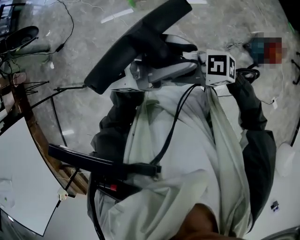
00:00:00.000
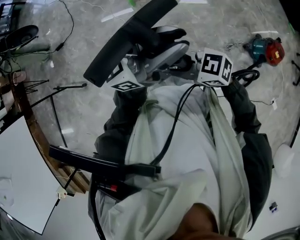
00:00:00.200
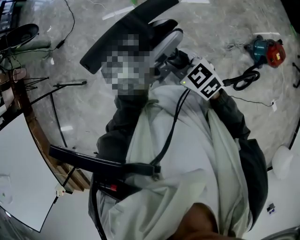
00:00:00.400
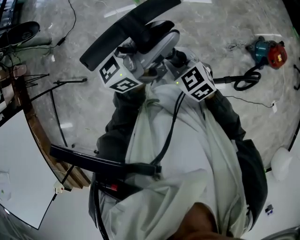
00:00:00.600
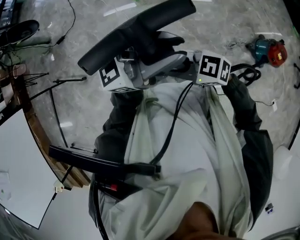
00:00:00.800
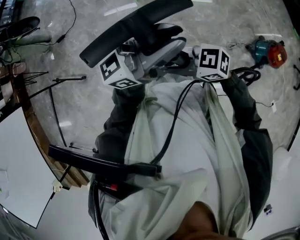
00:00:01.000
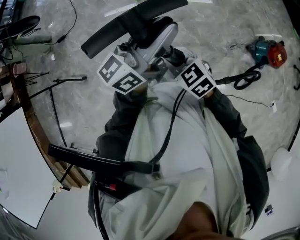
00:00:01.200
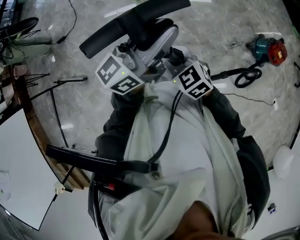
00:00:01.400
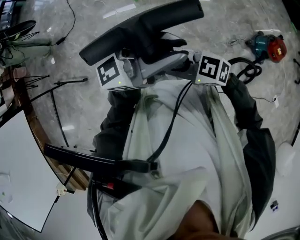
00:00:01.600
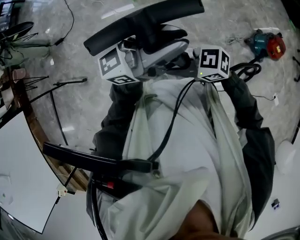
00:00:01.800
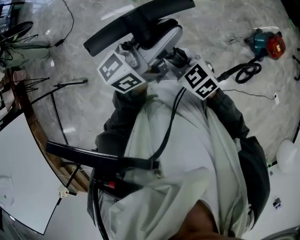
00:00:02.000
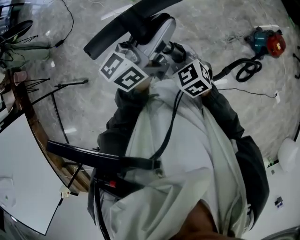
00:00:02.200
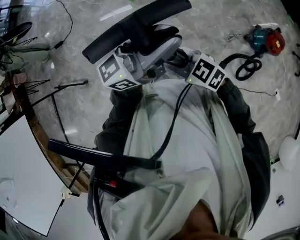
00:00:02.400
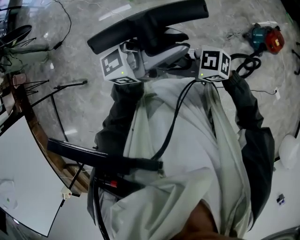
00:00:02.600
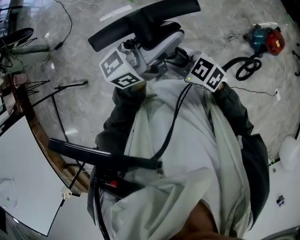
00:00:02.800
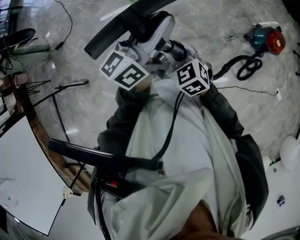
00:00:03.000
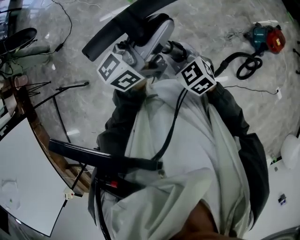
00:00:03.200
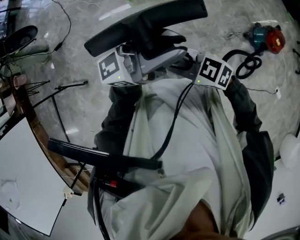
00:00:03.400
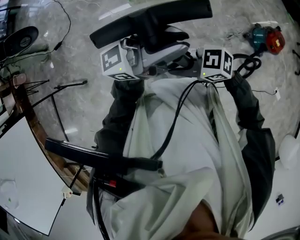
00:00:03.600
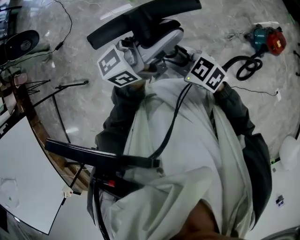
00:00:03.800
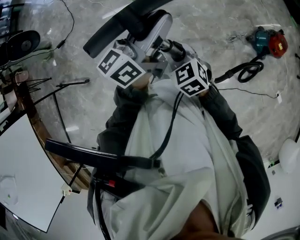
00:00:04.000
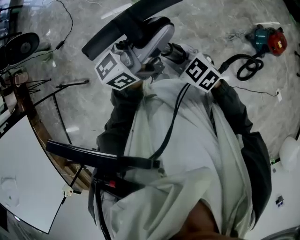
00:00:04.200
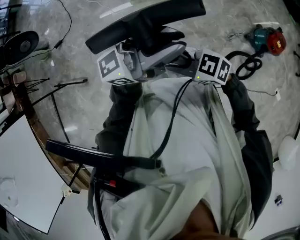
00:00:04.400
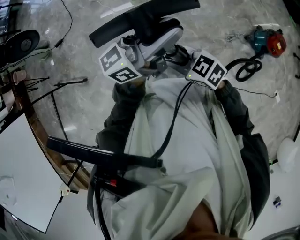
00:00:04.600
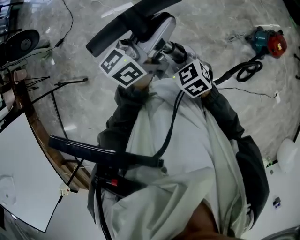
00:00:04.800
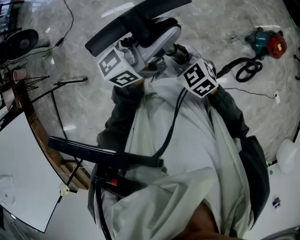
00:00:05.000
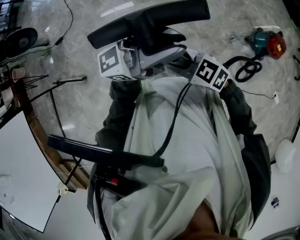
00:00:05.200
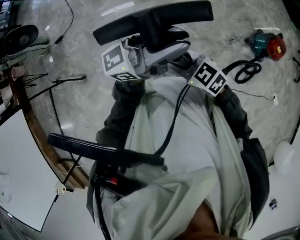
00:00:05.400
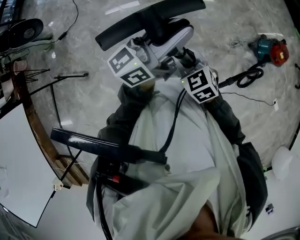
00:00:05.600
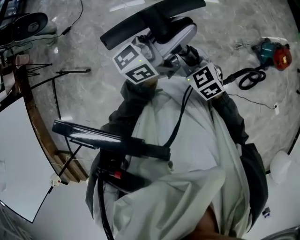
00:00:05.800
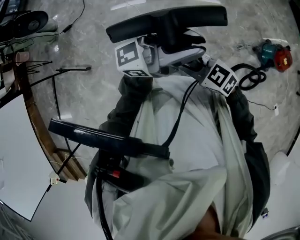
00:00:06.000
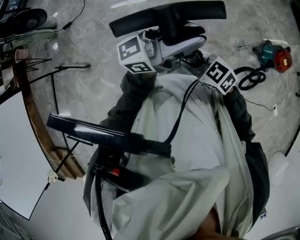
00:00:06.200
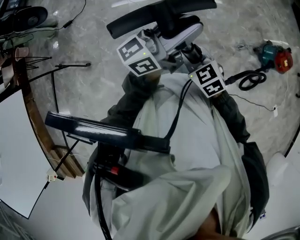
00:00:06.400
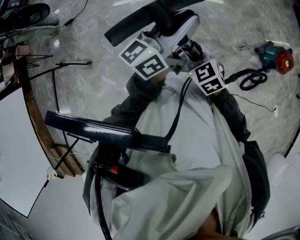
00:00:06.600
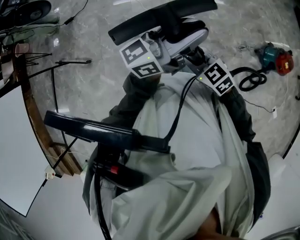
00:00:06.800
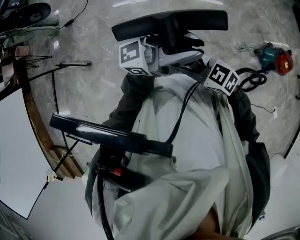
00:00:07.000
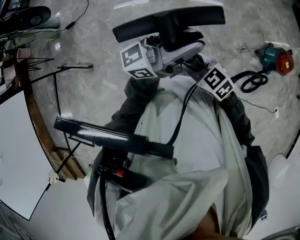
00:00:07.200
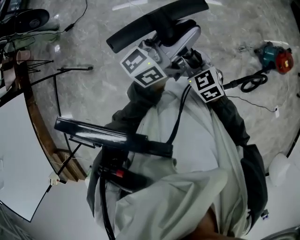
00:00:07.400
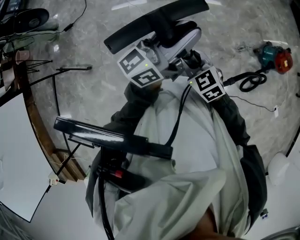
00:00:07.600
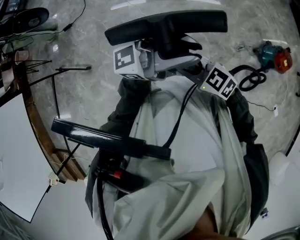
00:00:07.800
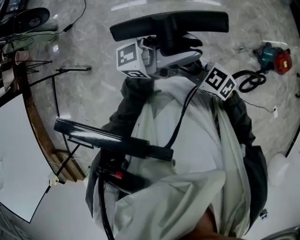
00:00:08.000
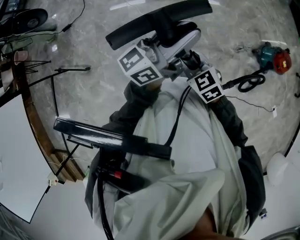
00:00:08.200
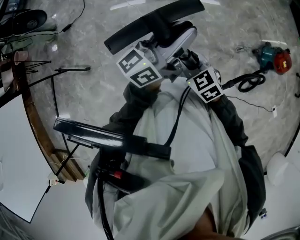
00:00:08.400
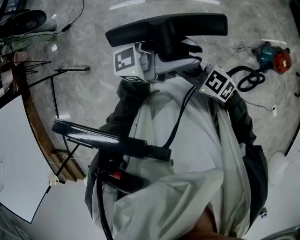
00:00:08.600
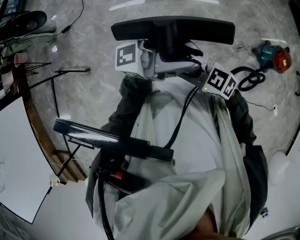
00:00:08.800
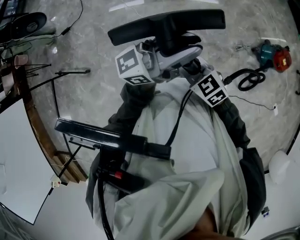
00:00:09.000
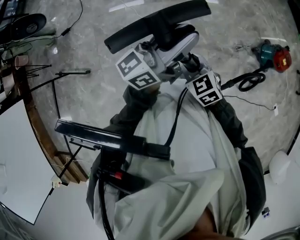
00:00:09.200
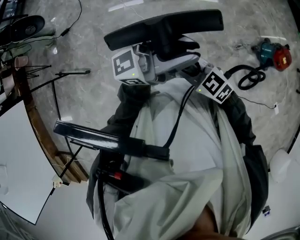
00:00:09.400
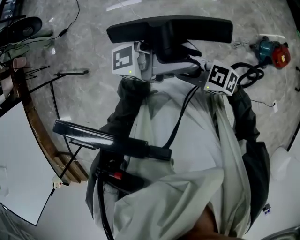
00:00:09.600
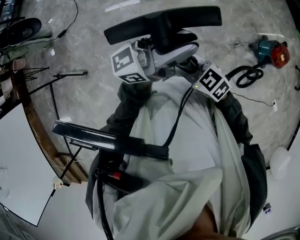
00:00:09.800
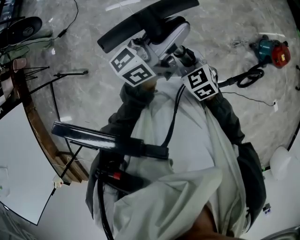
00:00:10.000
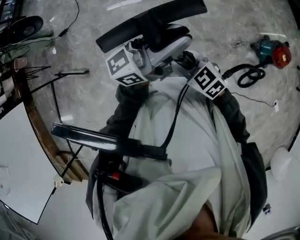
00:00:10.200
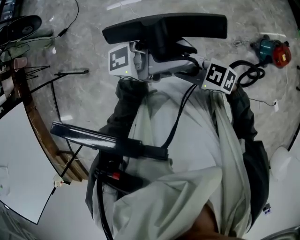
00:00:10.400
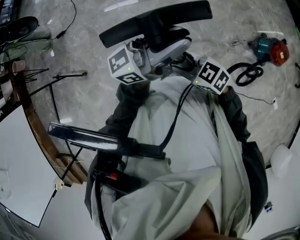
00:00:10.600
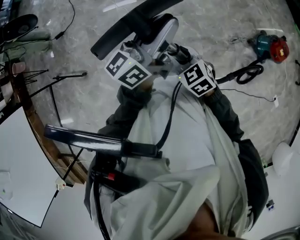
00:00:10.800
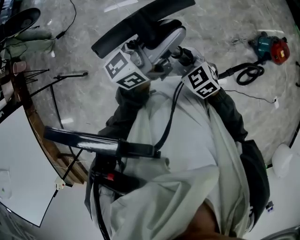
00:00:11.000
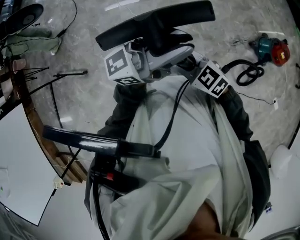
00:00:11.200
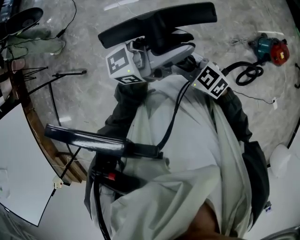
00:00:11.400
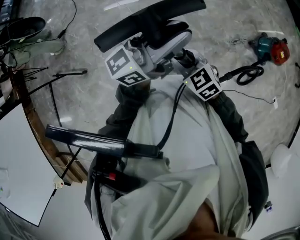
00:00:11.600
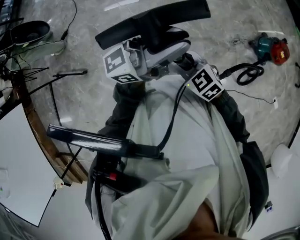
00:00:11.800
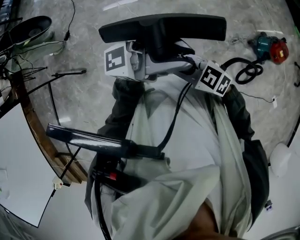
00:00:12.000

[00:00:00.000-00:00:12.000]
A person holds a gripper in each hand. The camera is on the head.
00:00:01.600 to 00:00:03.000: The left gripper shifts by some 10 cm, and swivels some 30 degrees, while the right gripper ends up approximately 10 cm from where it was, and changes its angle by approximately 50 degrees.
00:00:03.000 to 00:00:04.400: The right gripper moves about 5 cm, and rotates roughly 40 degrees. Meanwhile the left gripper goes up and down, some 5 cm each way, reversing 2 times, and changes its angle by about 30 degrees.
00:00:04.400 to 00:00:06.000: The left gripper moves up and down over about 5 cm, changing direction 2 times.
00:00:06.000 to 00:00:07.600: The right gripper changes its angle by about 20 degrees; the left gripper ends up some 5 cm from where it was, and turns by about 30 degrees.
00:00:09.000 to 00:00:10.400: The right gripper changes its angle by about 30 degrees.

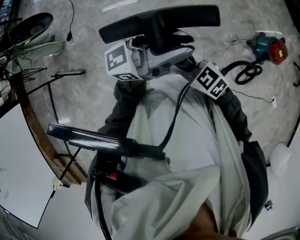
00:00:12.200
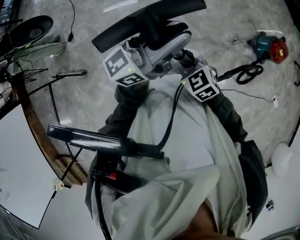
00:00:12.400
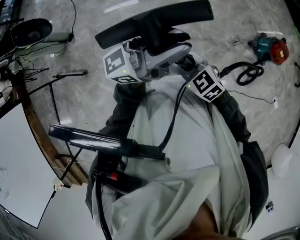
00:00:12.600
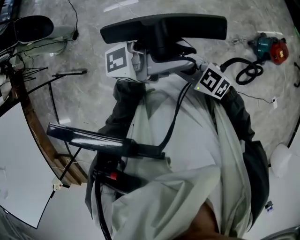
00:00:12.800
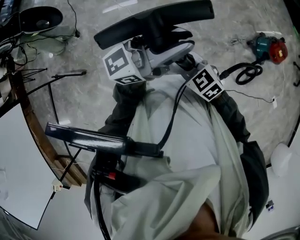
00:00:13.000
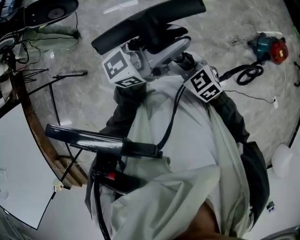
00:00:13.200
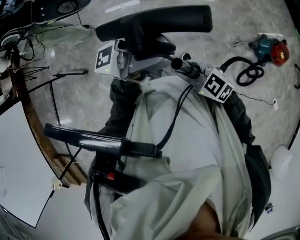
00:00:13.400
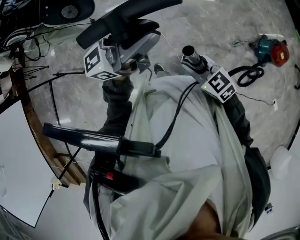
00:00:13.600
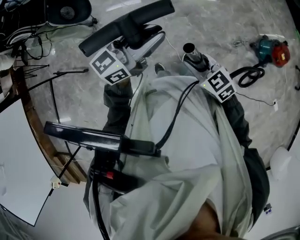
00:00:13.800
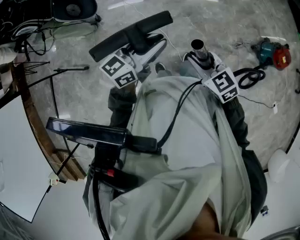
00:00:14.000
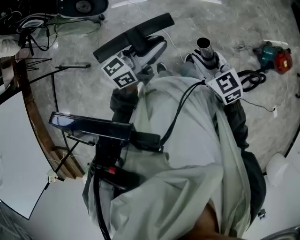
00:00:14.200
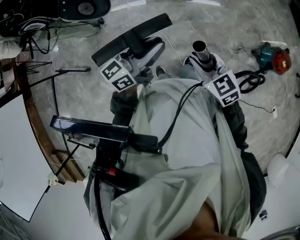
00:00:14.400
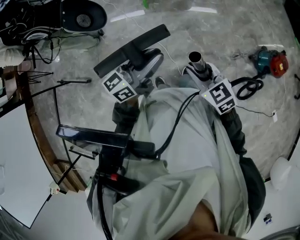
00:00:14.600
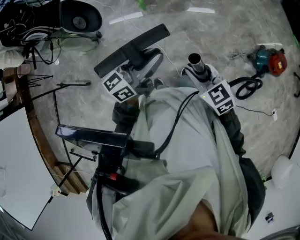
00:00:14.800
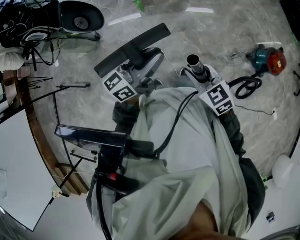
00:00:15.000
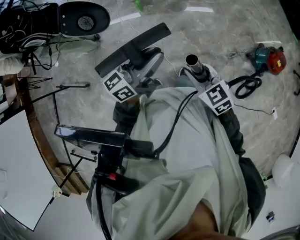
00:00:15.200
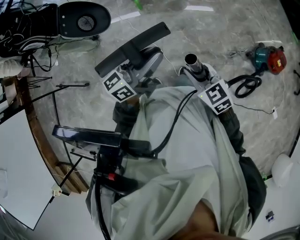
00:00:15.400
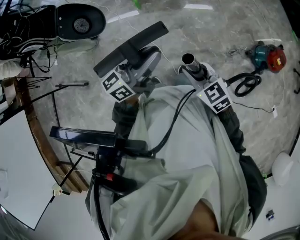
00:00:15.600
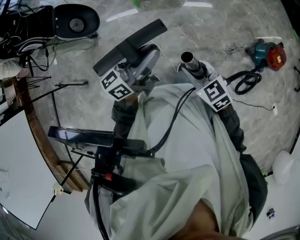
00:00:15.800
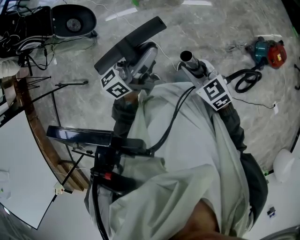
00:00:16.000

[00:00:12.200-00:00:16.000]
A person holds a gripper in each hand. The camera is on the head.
00:00:12.200 to 00:00:13.400: The left gripper moves about 10 cm.
00:00:13.400 to 00:00:14.800: The left gripper is displaced downward by approximately 15 cm, and points its fingers some 40 degrees further downward. The right gripper ends up approximately 10 cm from where it was, and swivels some 20 degrees.
00:00:14.800 to 00:00:16.000: The grippers stay close to where they were, moving slightly.

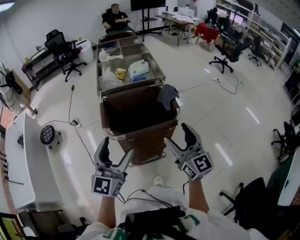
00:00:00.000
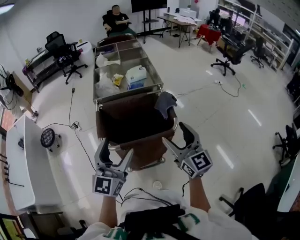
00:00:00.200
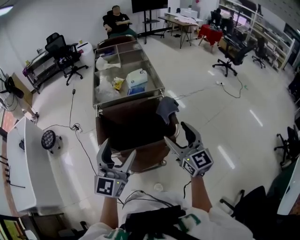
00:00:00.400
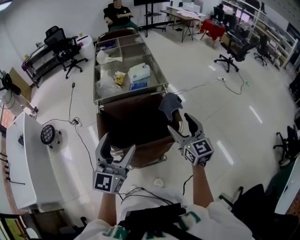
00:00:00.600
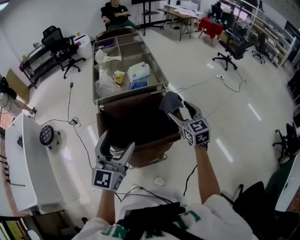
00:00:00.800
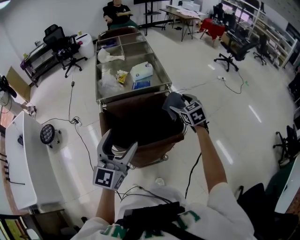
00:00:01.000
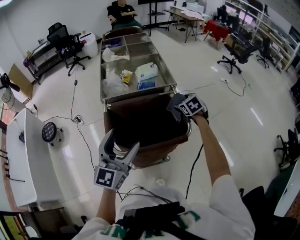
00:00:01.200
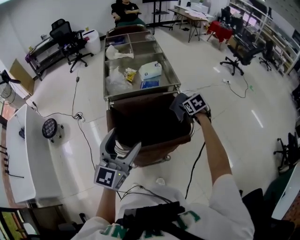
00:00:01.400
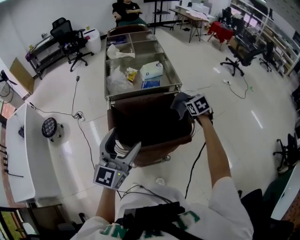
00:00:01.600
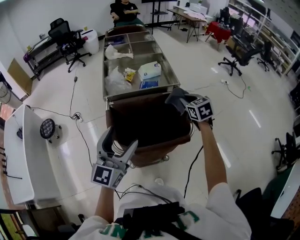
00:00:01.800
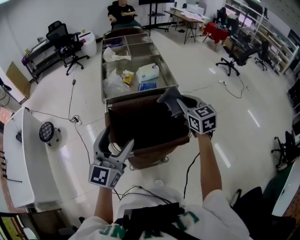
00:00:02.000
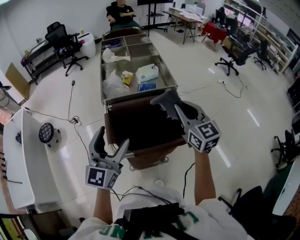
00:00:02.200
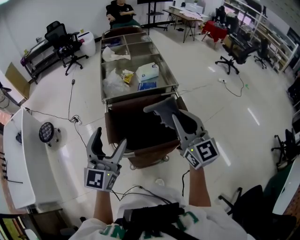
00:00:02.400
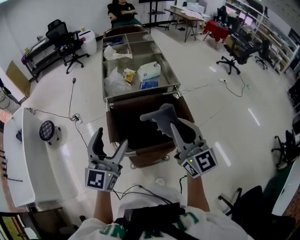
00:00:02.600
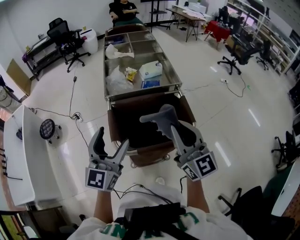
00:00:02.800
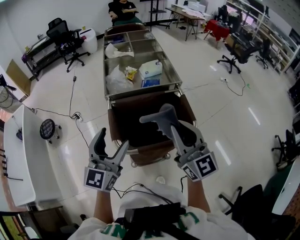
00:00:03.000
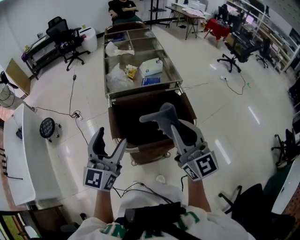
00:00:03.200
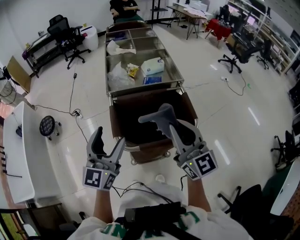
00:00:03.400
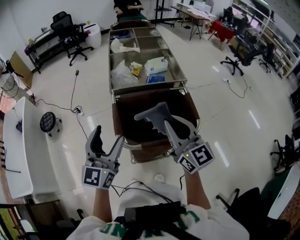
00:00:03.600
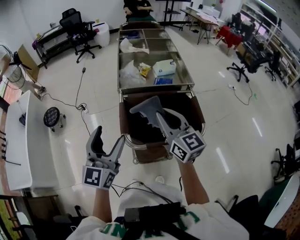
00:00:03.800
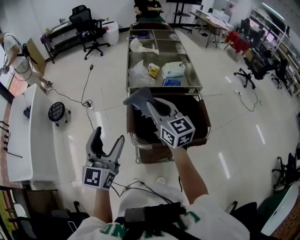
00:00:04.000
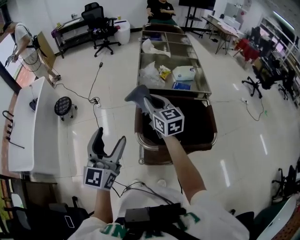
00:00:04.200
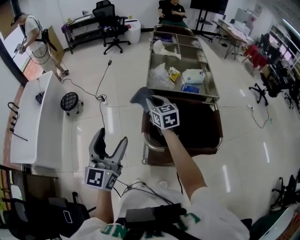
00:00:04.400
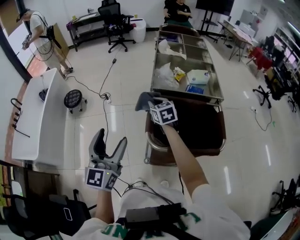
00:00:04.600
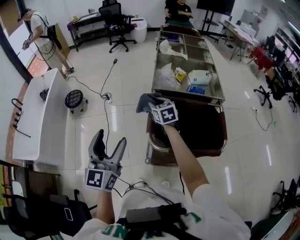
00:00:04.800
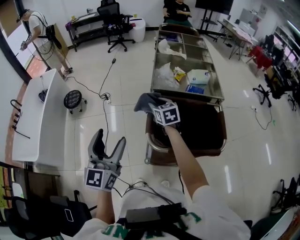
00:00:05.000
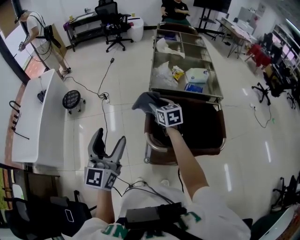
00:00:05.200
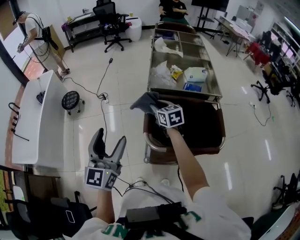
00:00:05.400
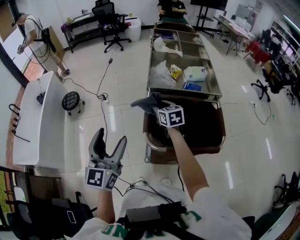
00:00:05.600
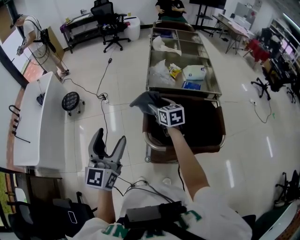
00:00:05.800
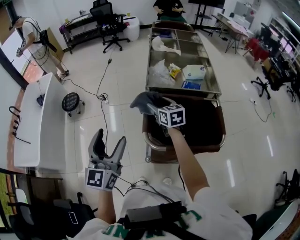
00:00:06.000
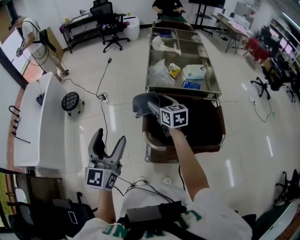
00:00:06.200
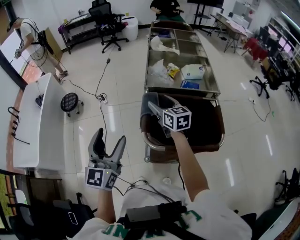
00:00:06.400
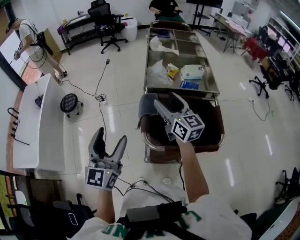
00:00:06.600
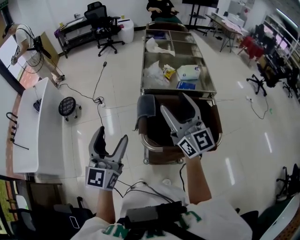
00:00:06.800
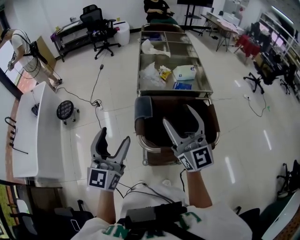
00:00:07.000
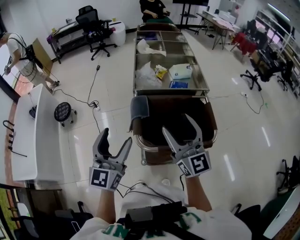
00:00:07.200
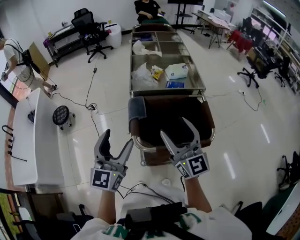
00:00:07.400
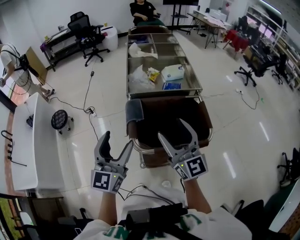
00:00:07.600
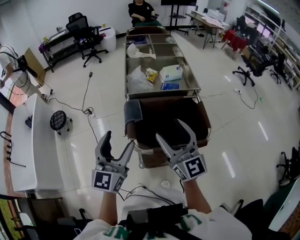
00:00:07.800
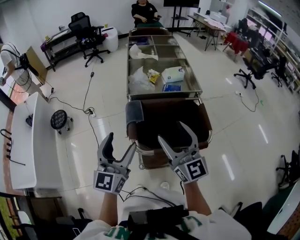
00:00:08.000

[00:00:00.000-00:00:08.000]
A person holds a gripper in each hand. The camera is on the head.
00:00:00.000 to 00:00:01.600: The right gripper is displaced forward and downward by about 35 cm, points its fingers approximately 60 degrees further downward, and closes up. The left gripper goes some 10 cm forward.
00:00:01.600 to 00:00:03.200: The right gripper goes approximately 35 cm backward, upward and to the left, and points its fingers approximately 60 degrees further upward. The left gripper travels to the left by roughly 5 cm.
00:00:03.200 to 00:00:04.800: The left gripper moves to the left, roughly 15 cm, and swivels approximately 20 degrees. Meanwhile the right gripper moves forward, downward and to the left, approximately 40 cm, and tilts its fingers about 40 degrees downward.
00:00:04.800 to 00:00:06.400: The right gripper shifts about 5 cm upward, turns by some 20 degrees, and opens.
00:00:06.400 to 00:00:08.000: The left gripper heads to the right, covering some 10 cm; the right gripper shifts approximately 25 cm backward, upward and to the right, and swivels roughly 40 degrees.
